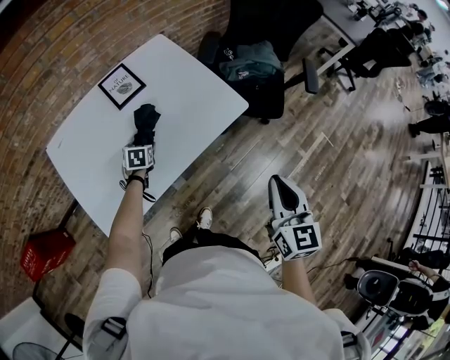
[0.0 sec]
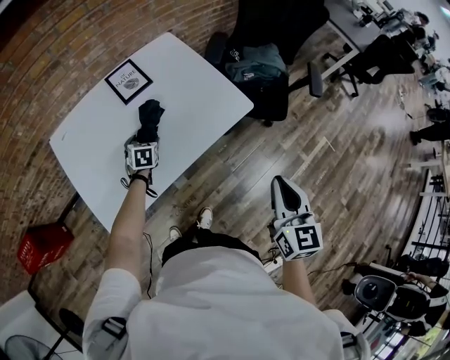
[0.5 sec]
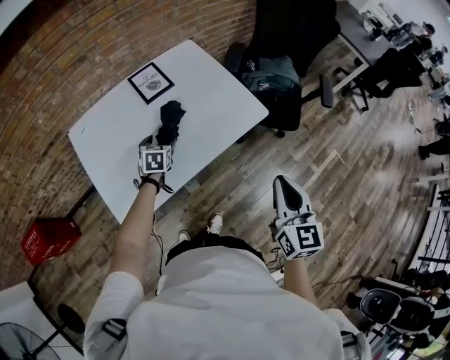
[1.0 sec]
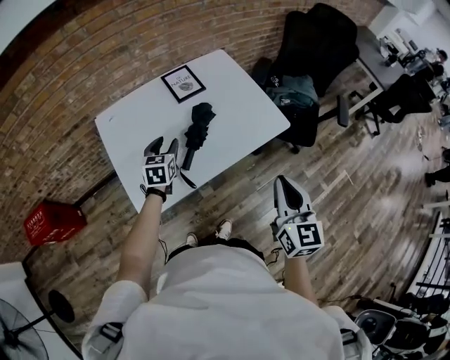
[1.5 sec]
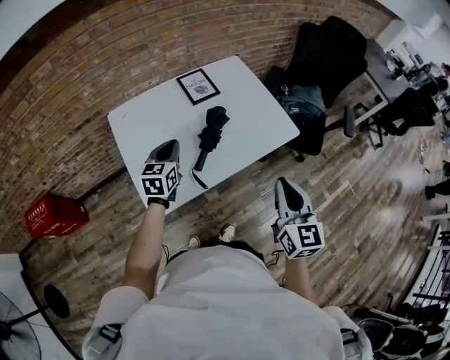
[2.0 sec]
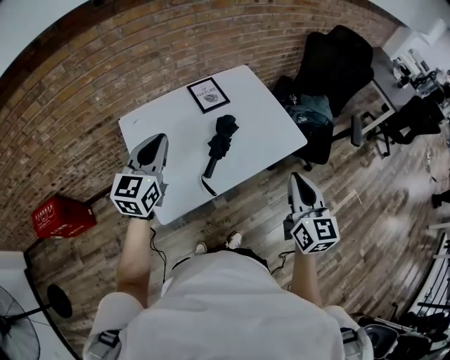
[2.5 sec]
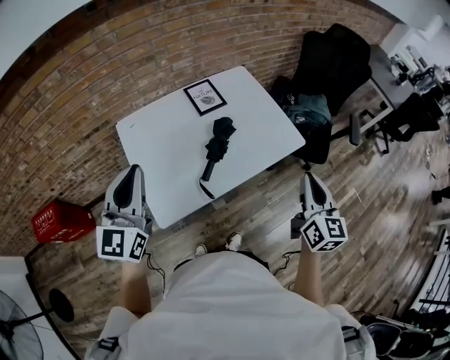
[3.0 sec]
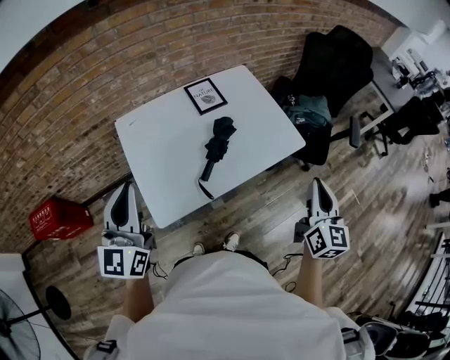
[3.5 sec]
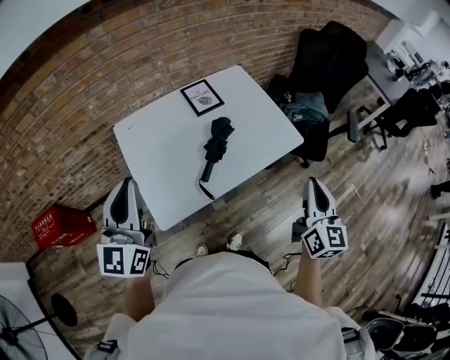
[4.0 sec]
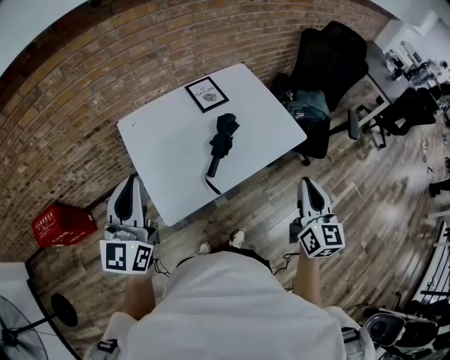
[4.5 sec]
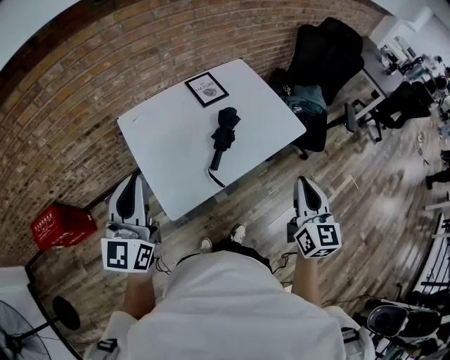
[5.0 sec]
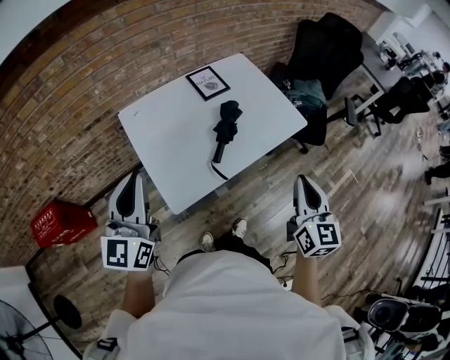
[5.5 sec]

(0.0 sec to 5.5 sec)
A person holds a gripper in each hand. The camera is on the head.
0.0 sec - 2.0 sec: The left gripper heads upward, backward and to the left, covering some 25 cm, points its fingers approximately 30 degrees further upward, and closes up; the right gripper moves to the left, about 15 cm.
2.0 sec - 3.5 sec: The left gripper is displaced upward and backward by about 25 cm, and turns by some 30 degrees. The right gripper goes about 10 cm to the right.
3.5 sec - 5.5 sec: The right gripper is displaced to the left and backward by approximately 15 cm. The left gripper moves roughly 5 cm.

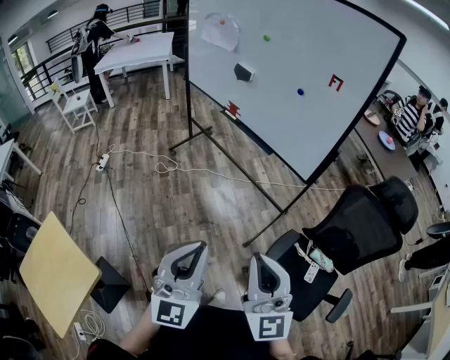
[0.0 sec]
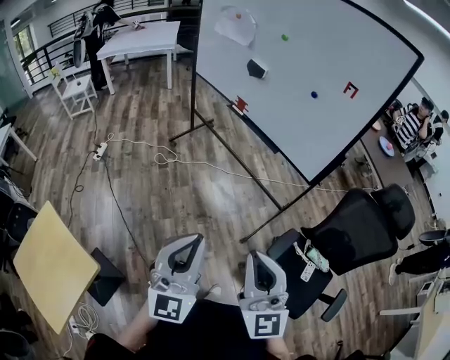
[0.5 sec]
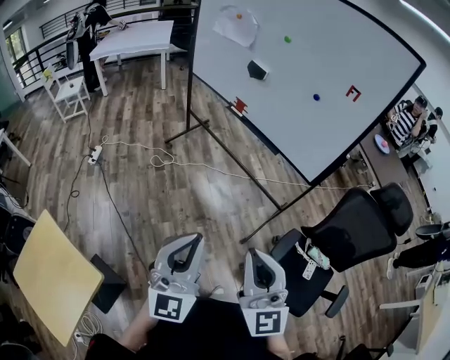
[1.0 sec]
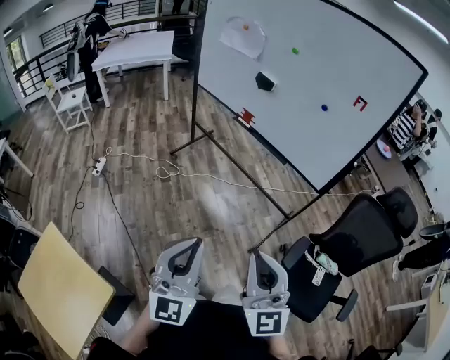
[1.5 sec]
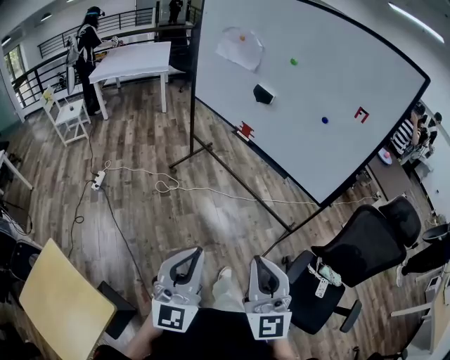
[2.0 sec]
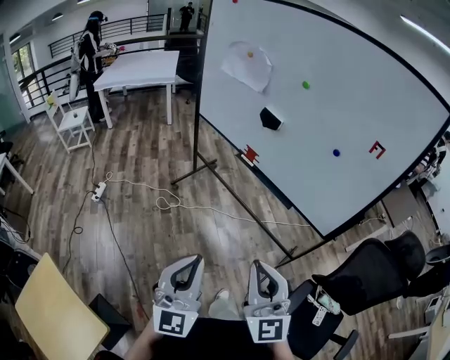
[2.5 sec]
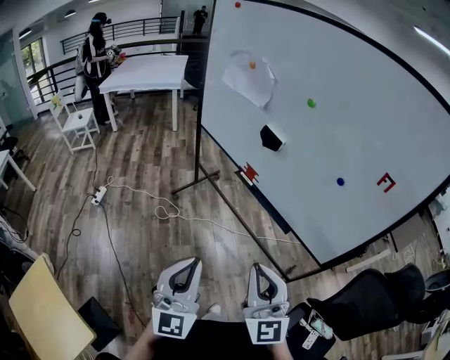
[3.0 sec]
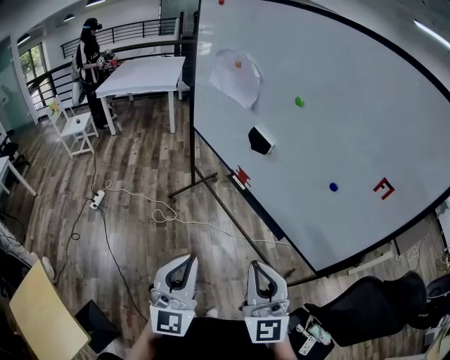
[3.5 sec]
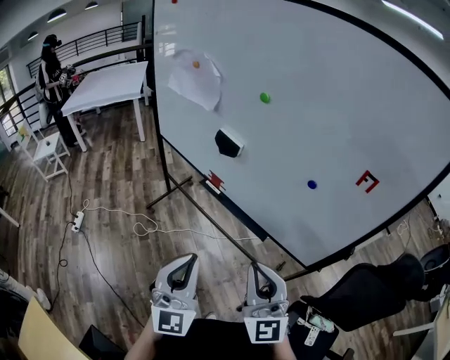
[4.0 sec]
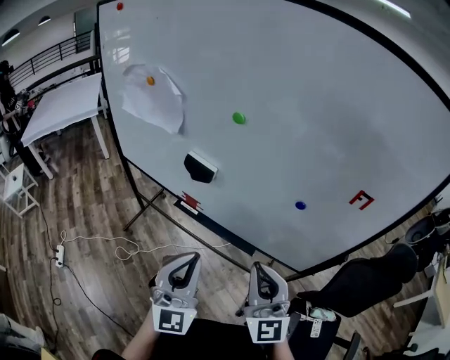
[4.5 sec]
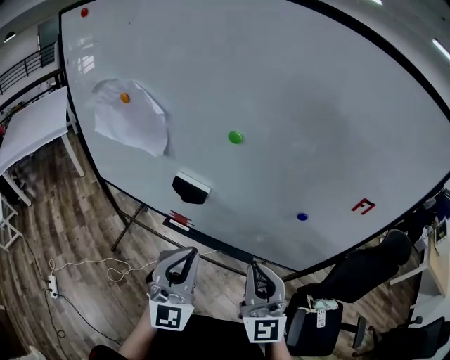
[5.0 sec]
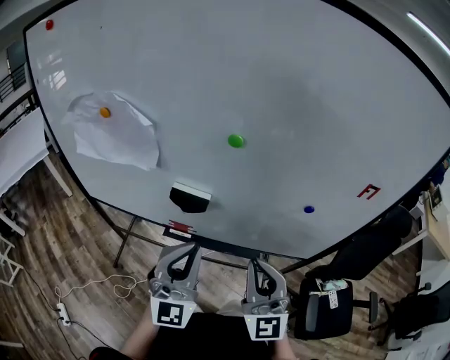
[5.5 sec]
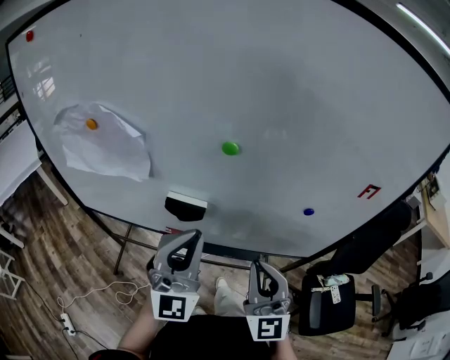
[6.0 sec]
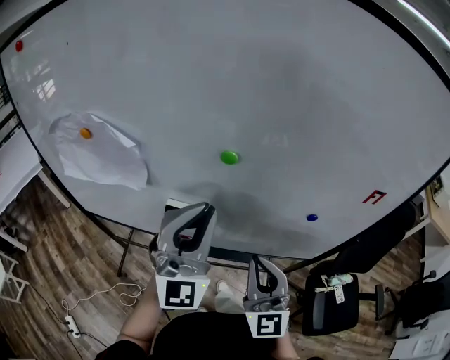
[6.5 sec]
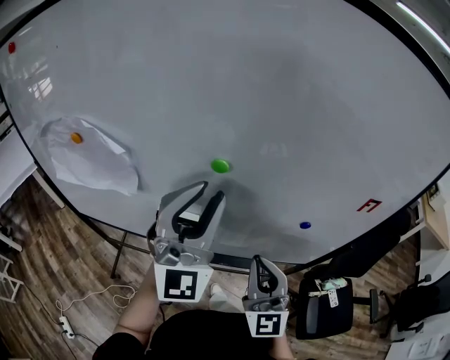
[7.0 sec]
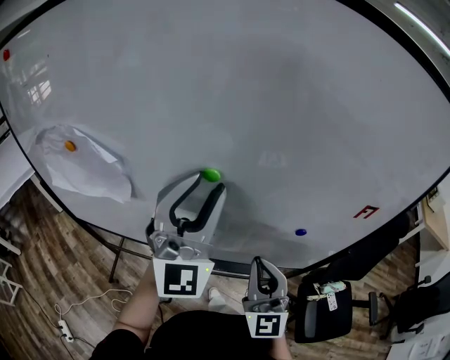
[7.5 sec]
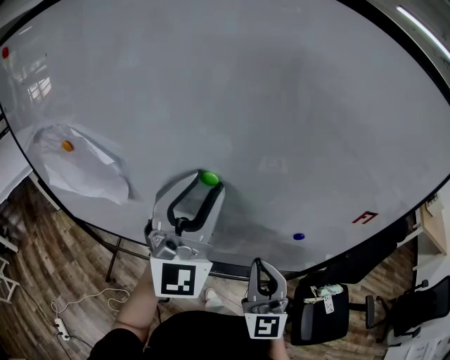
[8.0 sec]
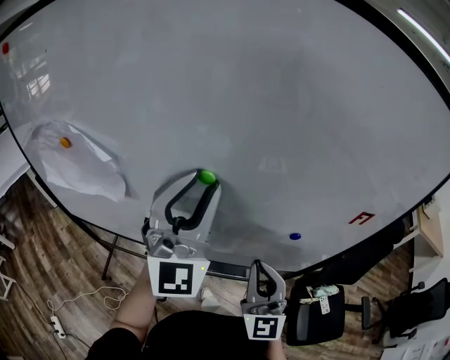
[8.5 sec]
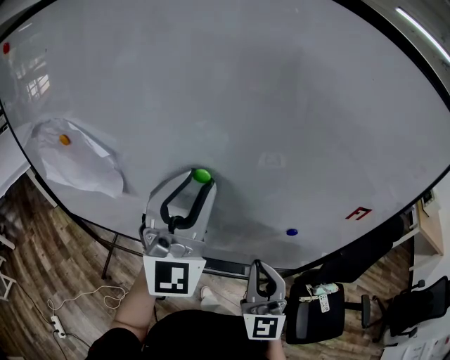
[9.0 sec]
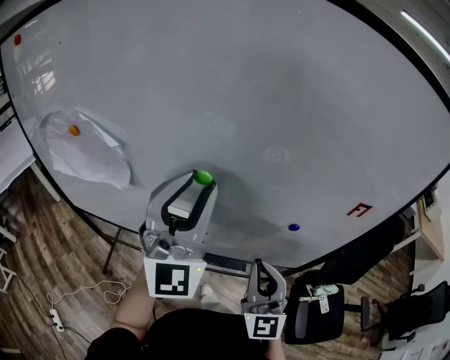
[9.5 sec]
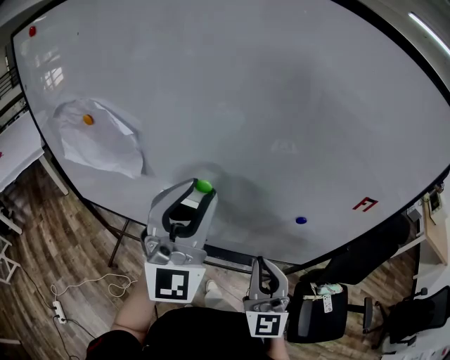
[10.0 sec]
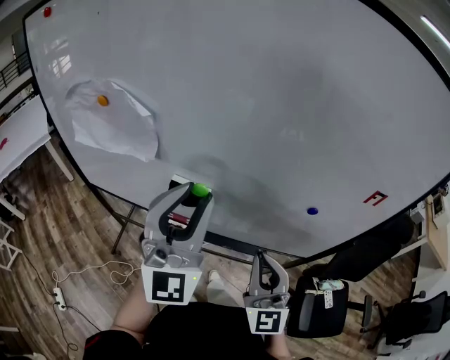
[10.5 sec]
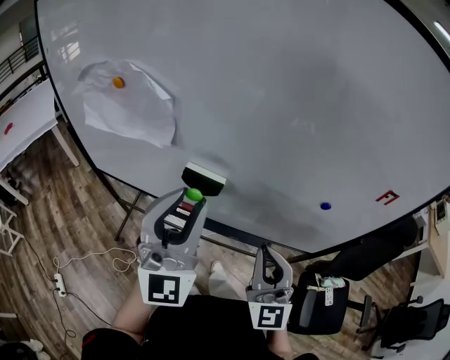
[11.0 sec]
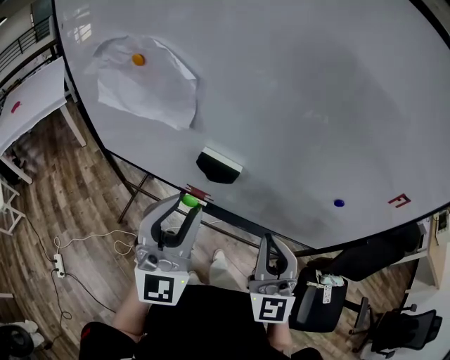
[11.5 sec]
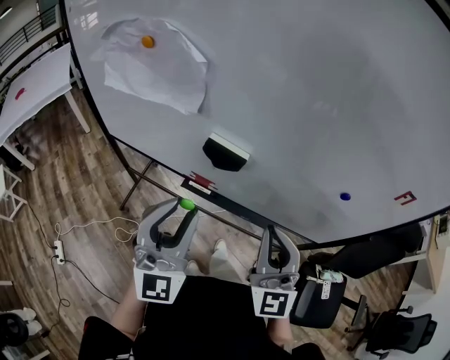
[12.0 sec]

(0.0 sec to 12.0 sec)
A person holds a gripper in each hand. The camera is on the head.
0.0 sec - 2.0 sec: Both grippers travel together to the left and forward, some 20 cm.
2.0 sec - 4.0 sec: The grippers both shift forward and to the right by some 35 cm.
4.0 sec - 6.0 sec: The left gripper shifts by some 30 cm, and swivels about 40 degrees, while the right gripper changes place by some 20 cm, and swivels about 40 degrees.
6.0 sec - 8.0 sec: The left gripper goes some 15 cm upward and forward, and opens up. Meanwhile the right gripper travels forward by roughly 10 cm.
8.0 sec - 10.0 sec: The left gripper shifts roughly 5 cm backward.
10.0 sec - 12.0 sec: The left gripper goes approximately 20 cm downward, to the left and backward. The right gripper heads to the left, covering about 10 cm.

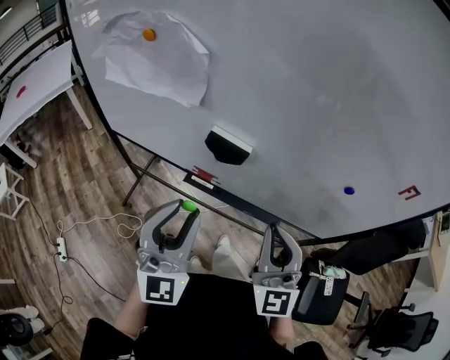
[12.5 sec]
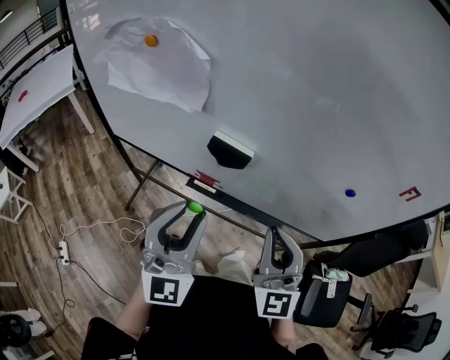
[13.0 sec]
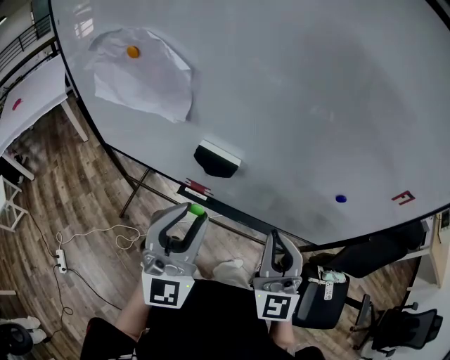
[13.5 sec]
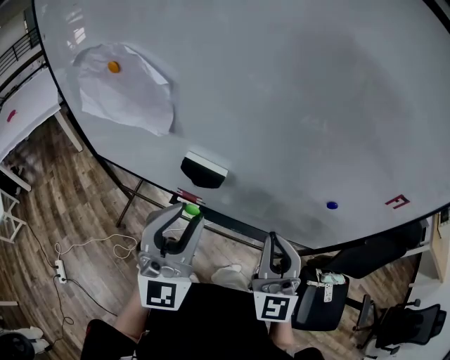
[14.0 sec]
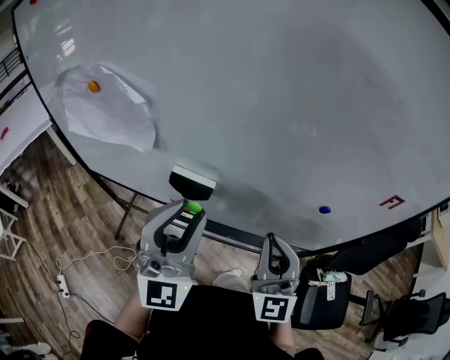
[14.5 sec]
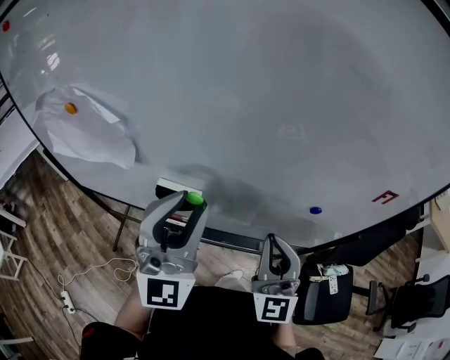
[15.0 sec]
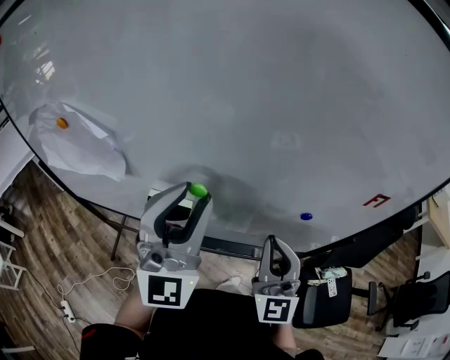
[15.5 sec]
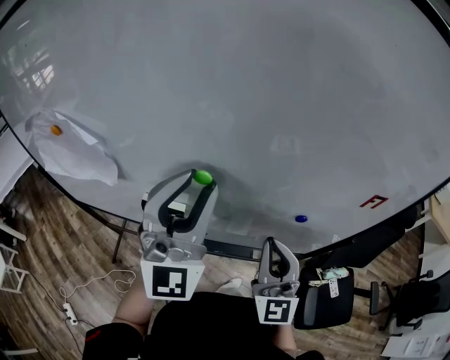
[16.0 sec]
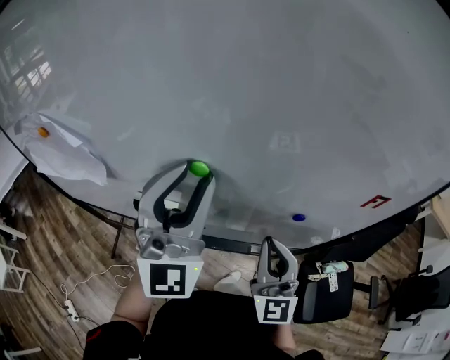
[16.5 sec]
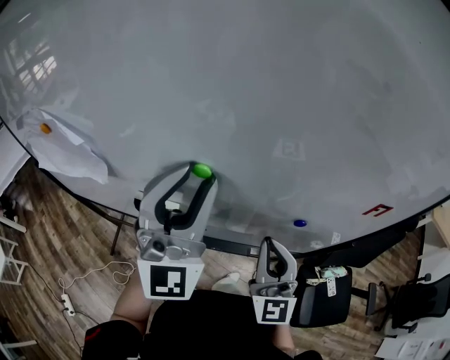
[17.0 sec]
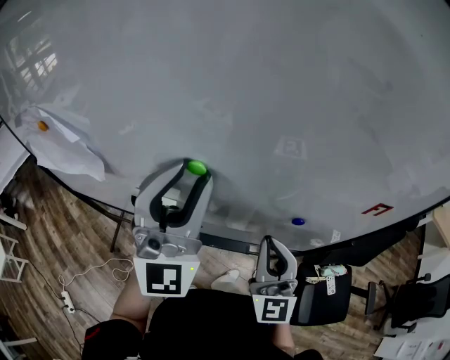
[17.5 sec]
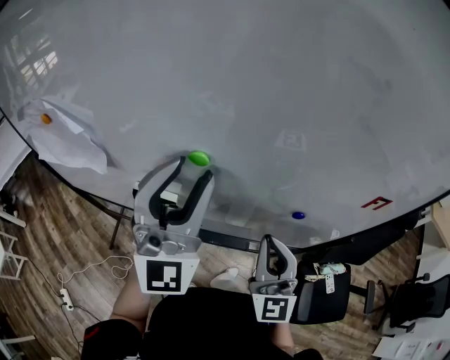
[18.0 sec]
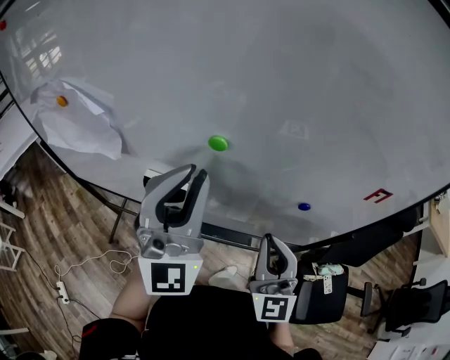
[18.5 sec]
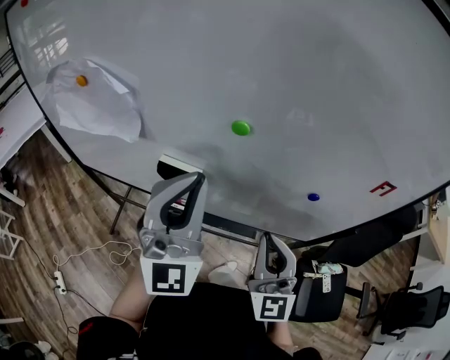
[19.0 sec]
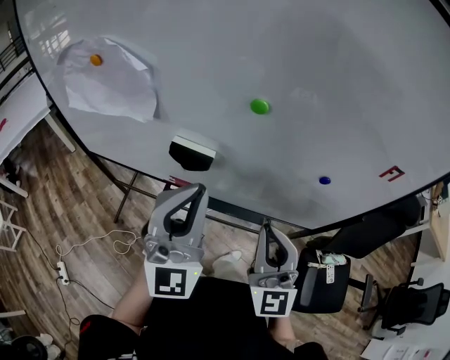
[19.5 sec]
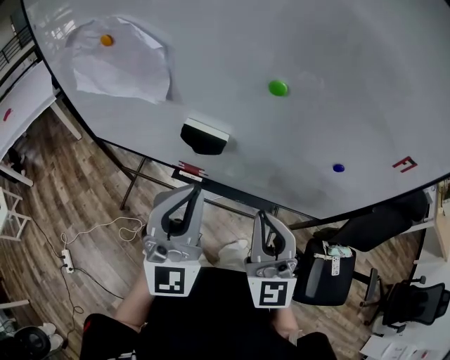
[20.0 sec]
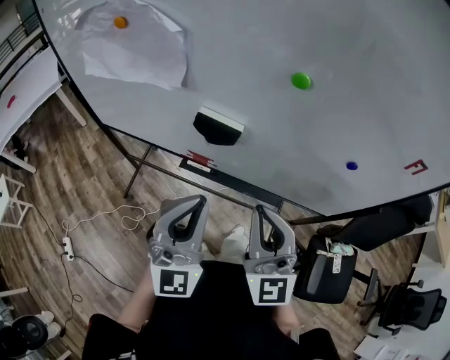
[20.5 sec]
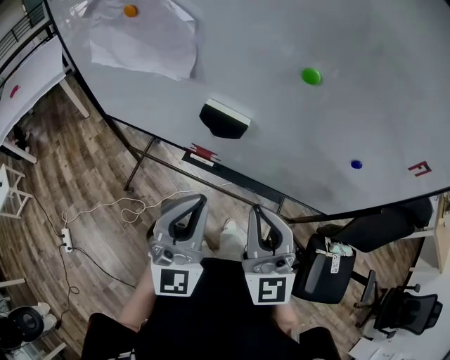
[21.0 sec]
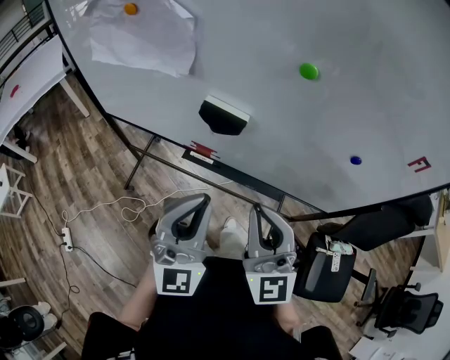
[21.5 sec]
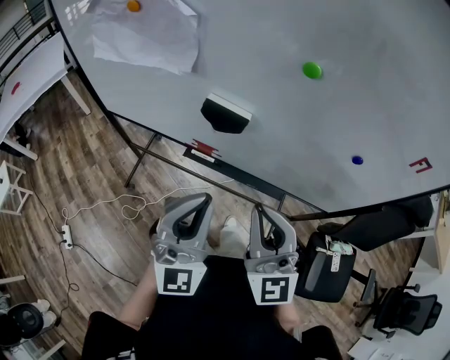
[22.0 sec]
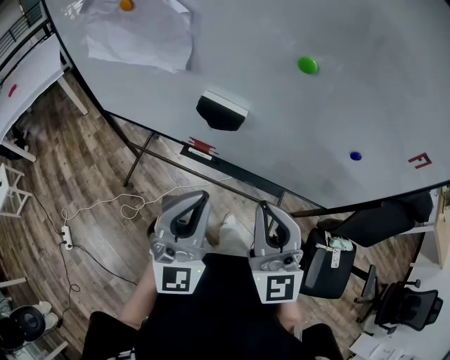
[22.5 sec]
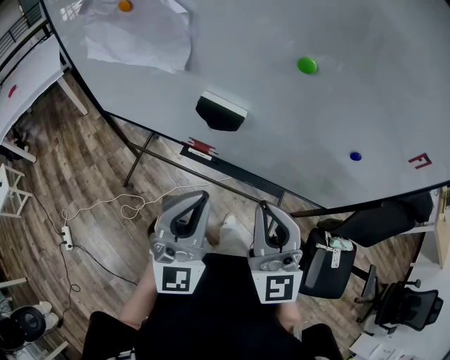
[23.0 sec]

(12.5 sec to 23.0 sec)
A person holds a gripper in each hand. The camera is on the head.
12.5 sec - 14.5 sec: The left gripper shifts some 10 cm forward, to the right and upward. The right gripper shifts some 10 cm forward and to the right.
14.5 sec - 16.5 sec: The right gripper is displaced to the right by some 5 cm, while the left gripper goes about 15 cm forward, upward and to the right.
16.5 sec - 19.0 sec: The grippers both shift backward by roughly 5 cm. The left gripper closes its fingers.
19.0 sec - 21.0 sec: The right gripper goes approximately 10 cm to the left. Meanwhile the left gripper heads downward, backward and to the left, covering some 20 cm.
21.0 sec - 23.0 sec: There are only small adjustments of the grippers.
